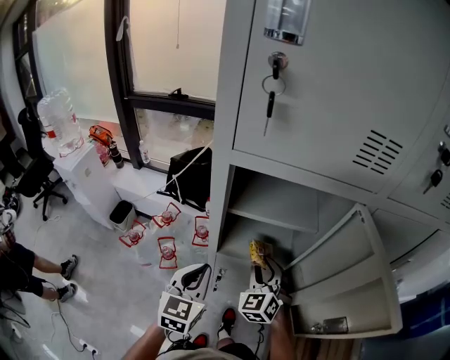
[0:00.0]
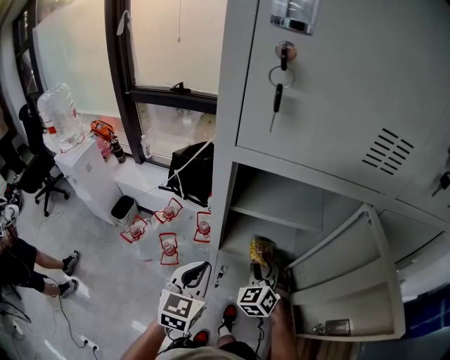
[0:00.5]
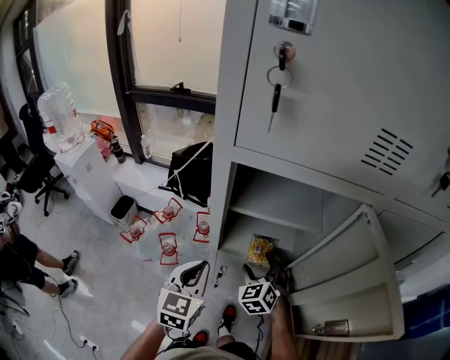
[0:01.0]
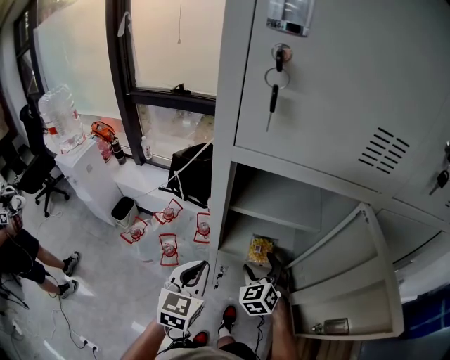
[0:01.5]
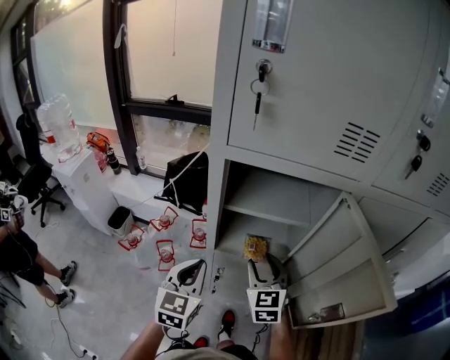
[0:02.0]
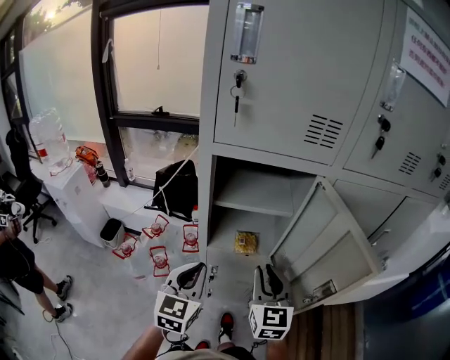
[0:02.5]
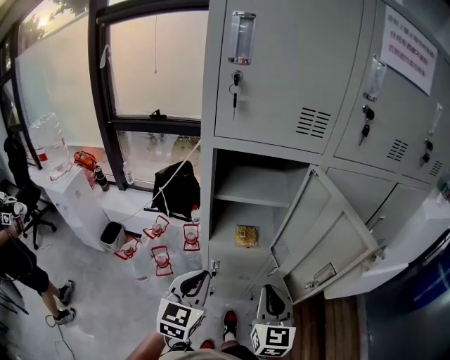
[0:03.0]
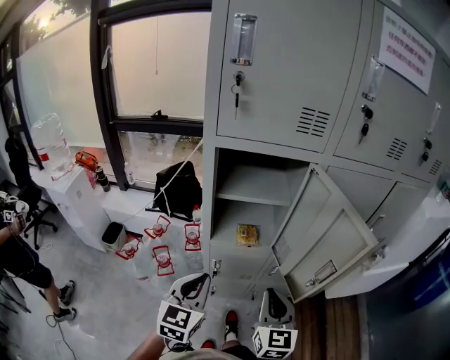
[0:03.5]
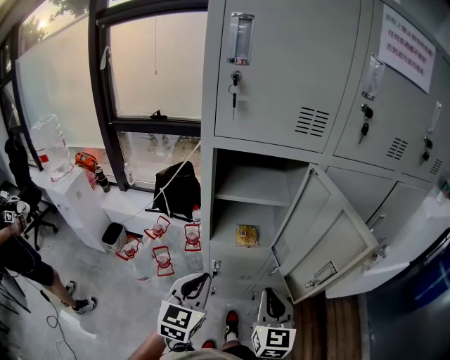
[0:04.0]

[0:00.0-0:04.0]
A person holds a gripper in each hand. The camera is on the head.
0:00.0 to 0:02.0: The right gripper moves about 5 cm, rotates some 20 degrees, and opens, then closes again.
0:02.0 to 0:04.0: The right gripper heads backward, covering some 20 cm, swivels approximately 20 degrees, and closes its fingers. The left gripper is displaced backward by about 10 cm.

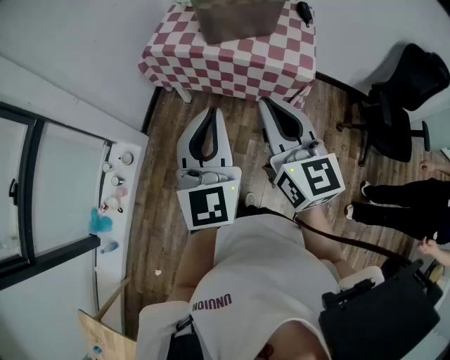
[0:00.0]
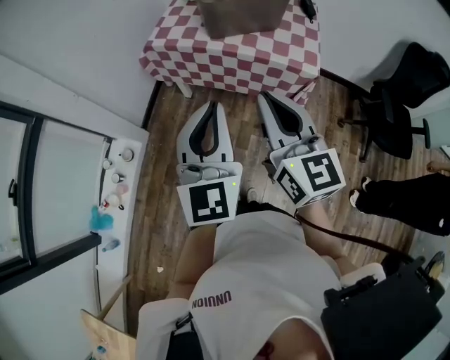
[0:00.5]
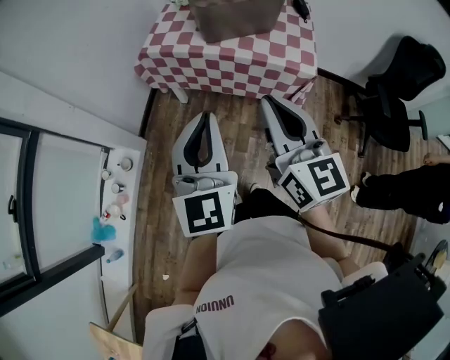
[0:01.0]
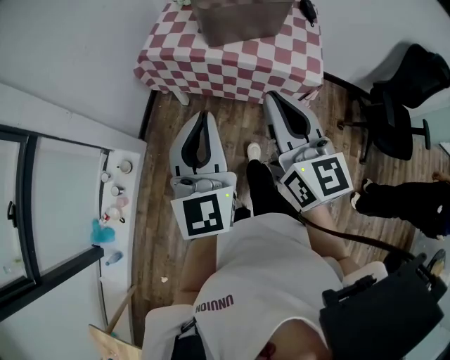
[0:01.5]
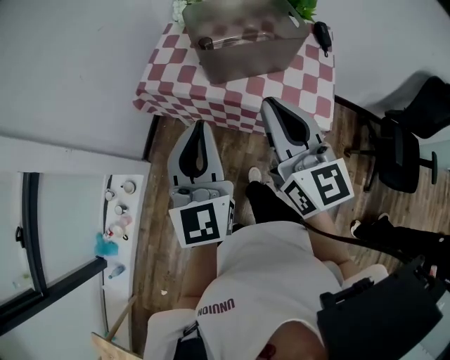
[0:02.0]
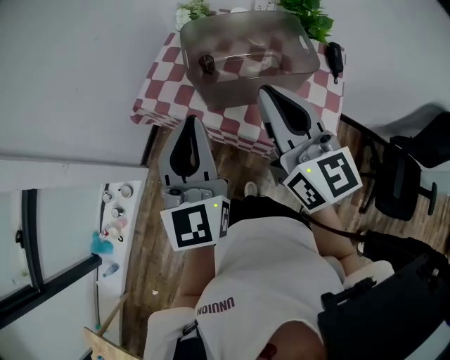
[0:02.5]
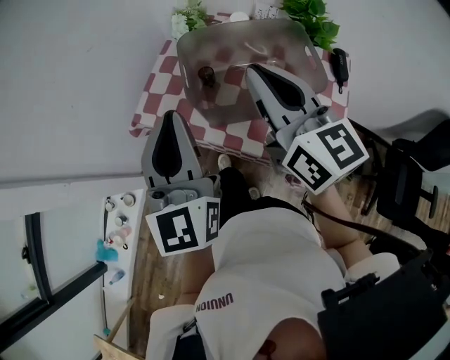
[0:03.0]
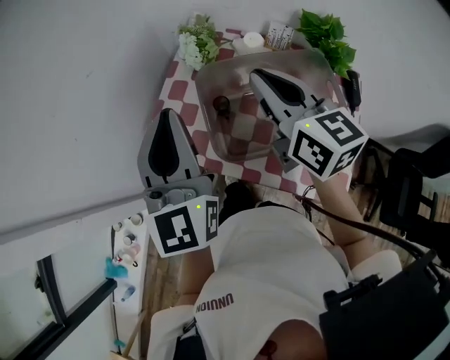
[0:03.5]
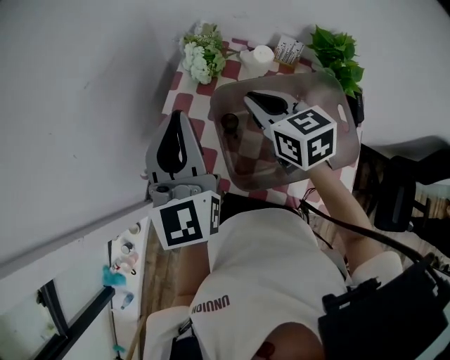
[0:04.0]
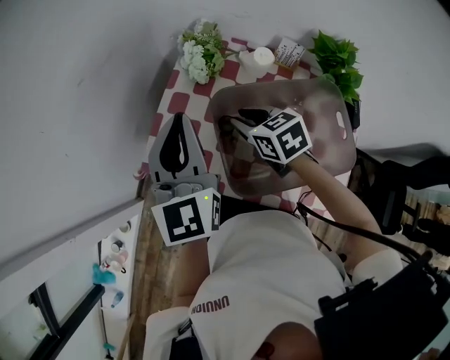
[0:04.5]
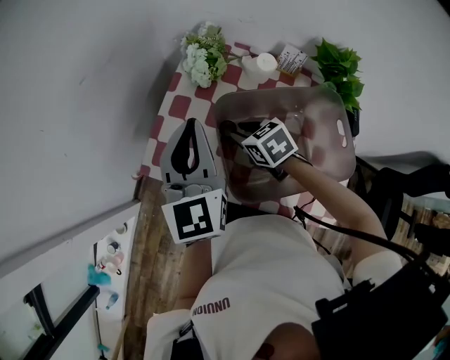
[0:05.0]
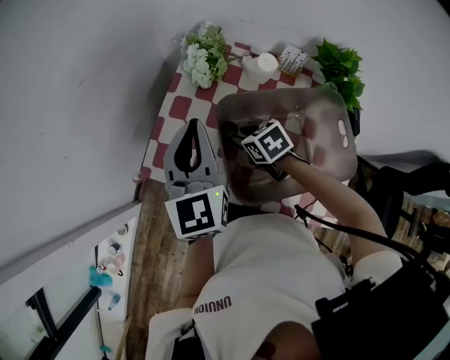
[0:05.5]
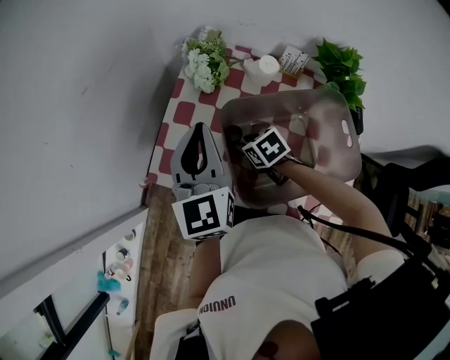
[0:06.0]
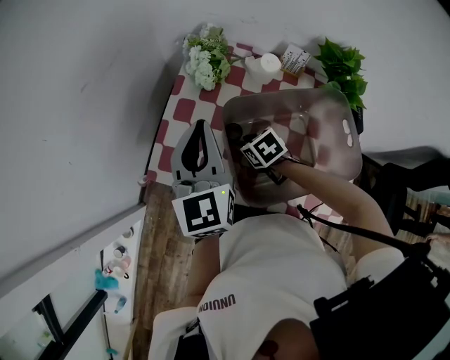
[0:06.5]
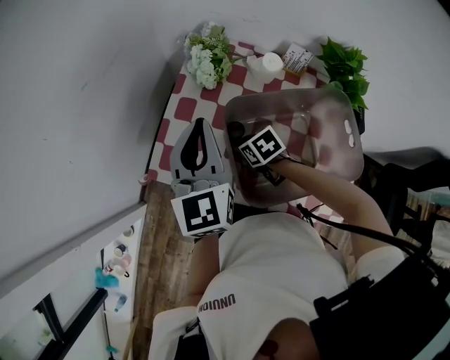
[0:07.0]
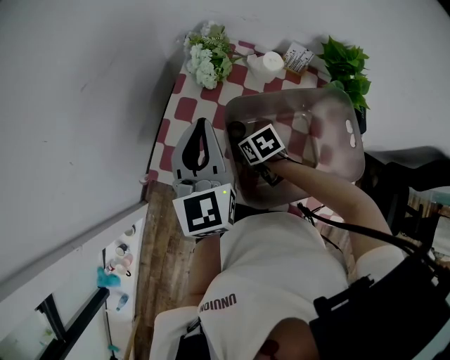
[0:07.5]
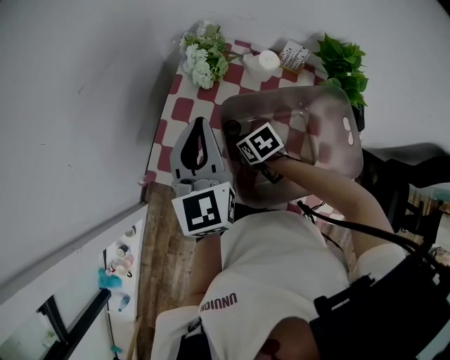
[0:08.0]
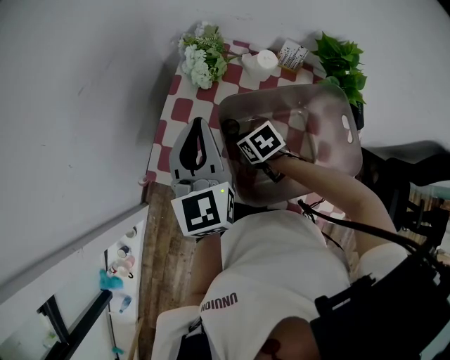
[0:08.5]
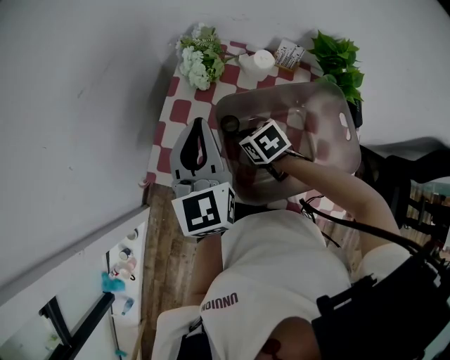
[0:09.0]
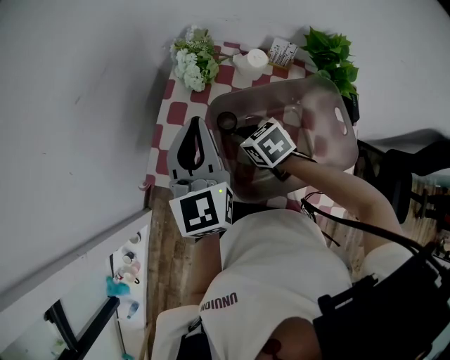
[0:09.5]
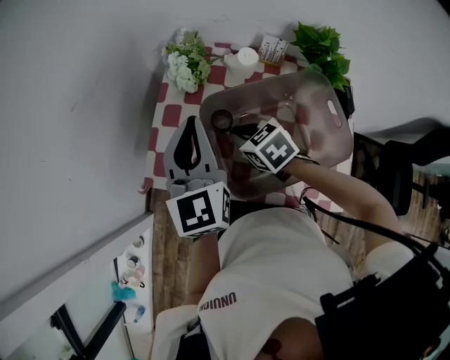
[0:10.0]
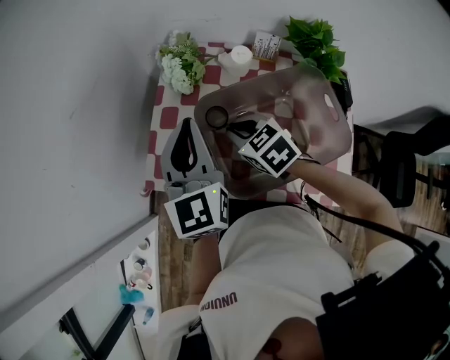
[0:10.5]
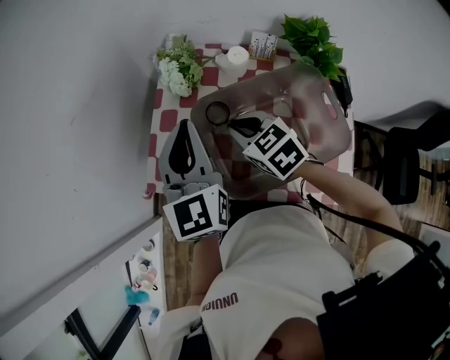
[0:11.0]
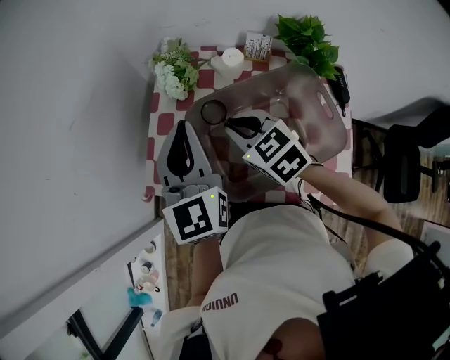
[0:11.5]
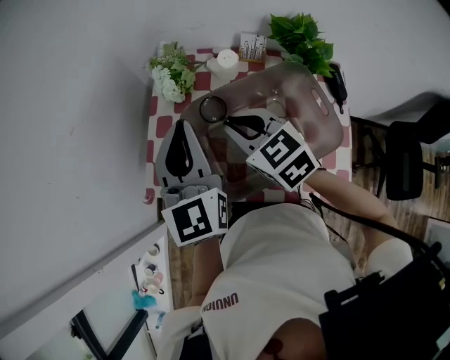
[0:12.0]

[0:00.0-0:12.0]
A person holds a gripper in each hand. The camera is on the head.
0:00.0 to 0:02.0: The grippers both shift forward by roughly 20 cm.
0:02.0 to 0:04.0: Both grippers travel together forward, roughly 40 cm. The right gripper angles its fingers downward, by some 30 degrees.
0:04.0 to 0:06.0: The left gripper goes about 5 cm downward; the right gripper shifts approximately 20 cm downward, angles its fingers downward, by roughly 30 degrees, and opens its fingers.
0:06.0 to 0:08.0: There are only small adjustments of the grippers.
0:08.0 to 0:10.0: The right gripper shifts approximately 10 cm upward.
0:10.0 to 0:12.0: The right gripper is displaced upward by approximately 10 cm, and changes its angle by approximately 20 degrees.

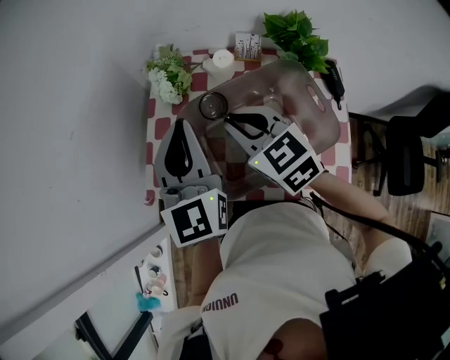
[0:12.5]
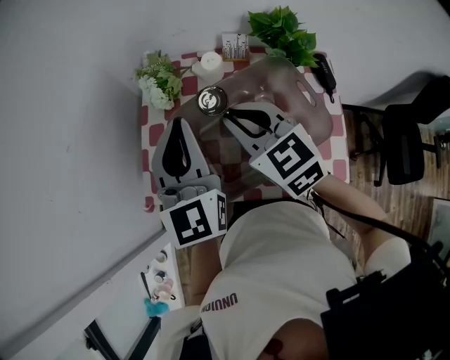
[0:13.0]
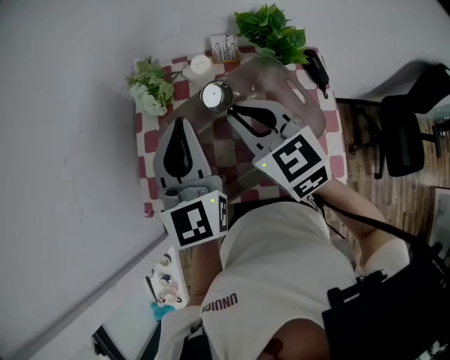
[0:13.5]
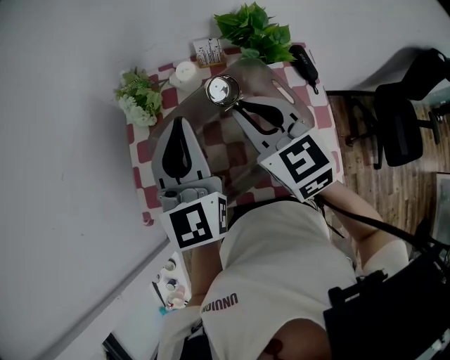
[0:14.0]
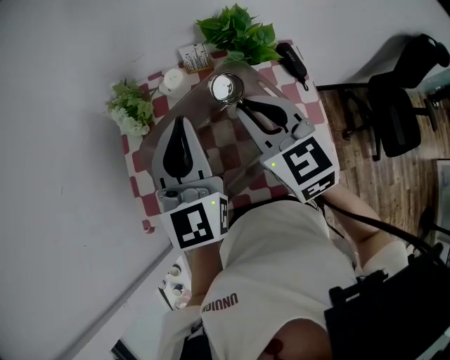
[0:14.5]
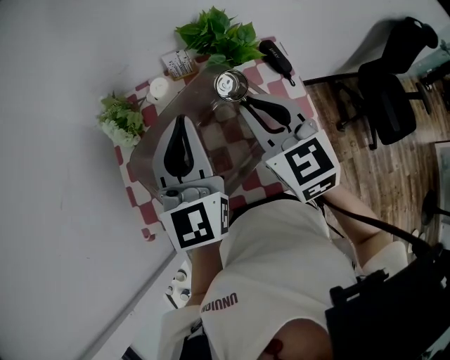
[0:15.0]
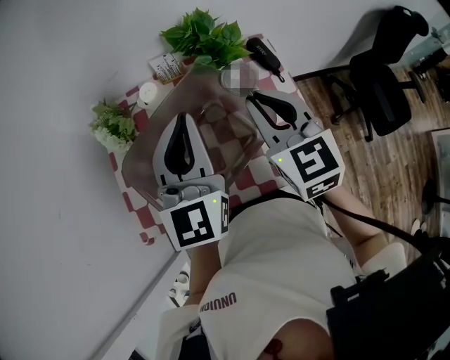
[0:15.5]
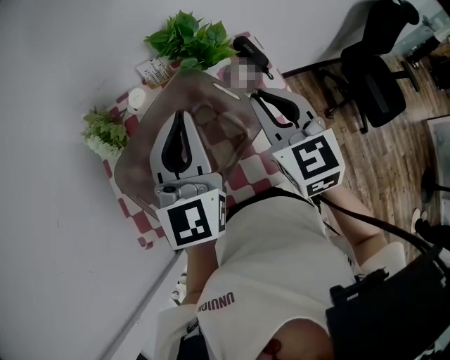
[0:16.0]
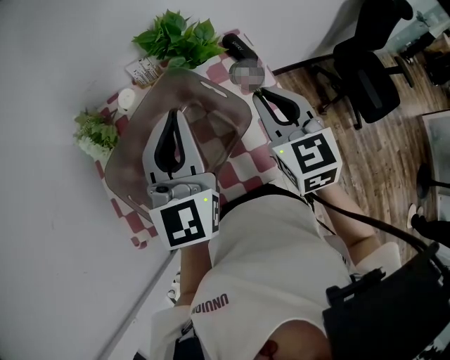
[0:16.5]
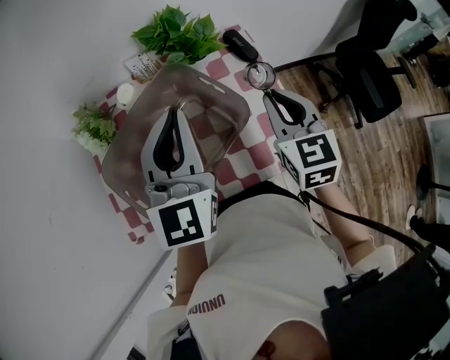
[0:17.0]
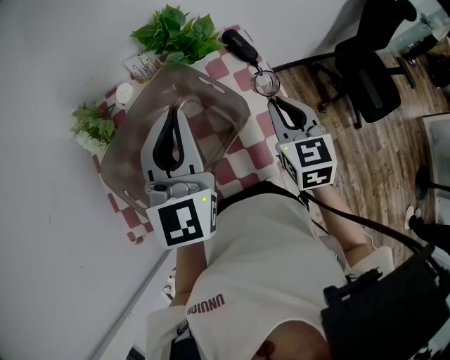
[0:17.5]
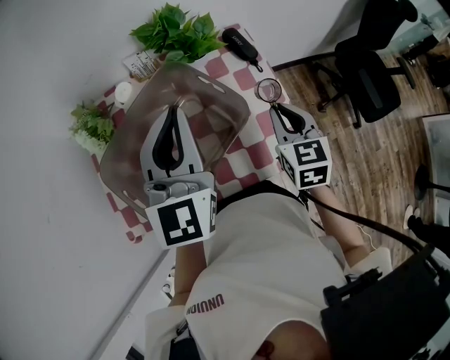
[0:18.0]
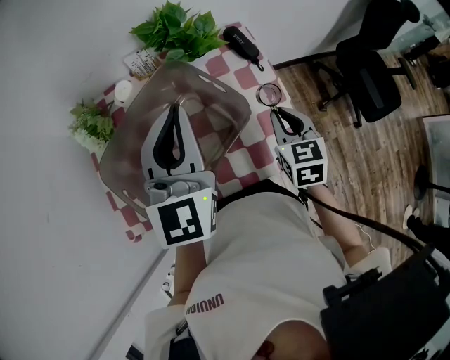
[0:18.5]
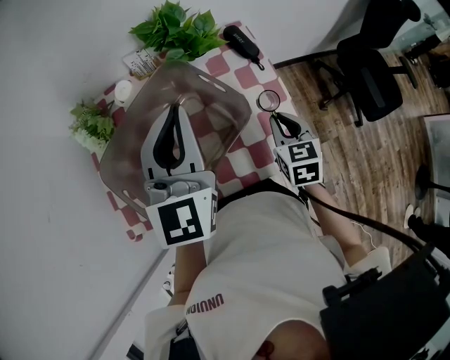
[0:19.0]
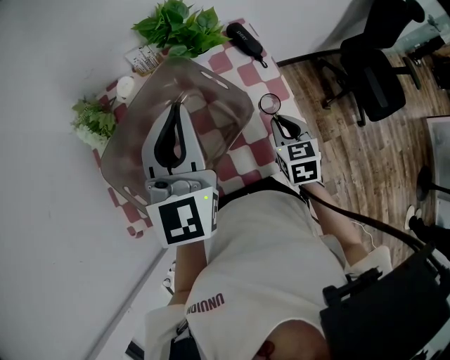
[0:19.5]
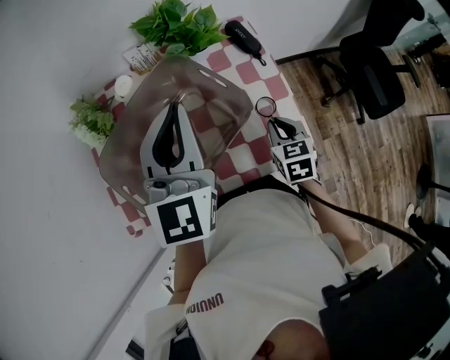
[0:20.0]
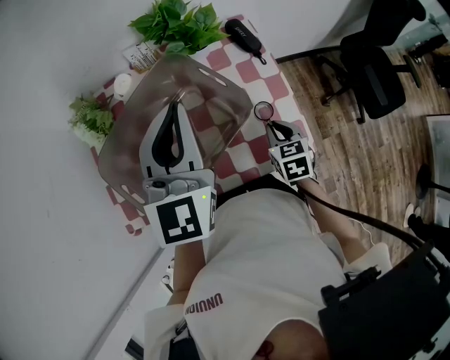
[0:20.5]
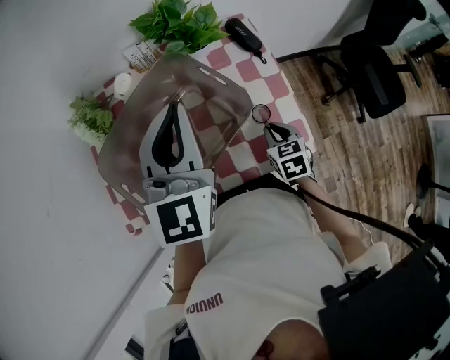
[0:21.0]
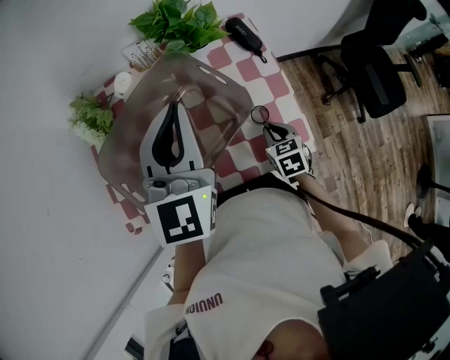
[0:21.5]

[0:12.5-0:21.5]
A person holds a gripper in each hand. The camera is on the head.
0:12.5 to 0:14.5: The grippers both shift to the right by some 15 cm. The right gripper rotates approximately 30 degrees.
0:14.5 to 0:17.0: The right gripper goes some 20 cm to the right, and rotates roughly 30 degrees; the left gripper travels to the right by about 10 cm.
0:17.0 to 0:19.5: The right gripper heads downward, covering some 15 cm.
0:19.5 to 0:21.5: The right gripper heads downward, covering about 10 cm.

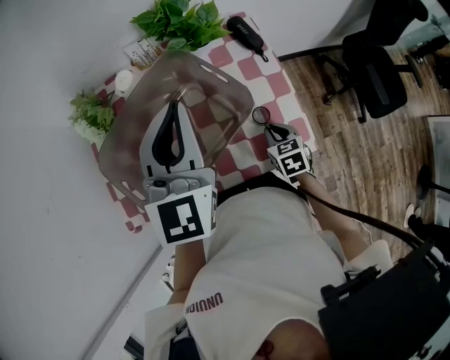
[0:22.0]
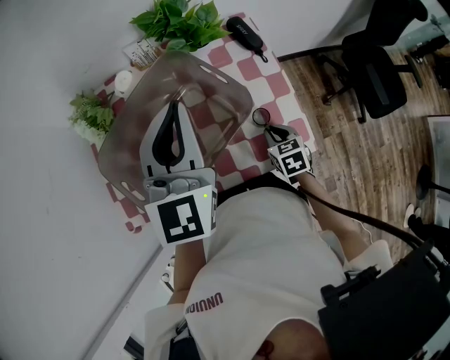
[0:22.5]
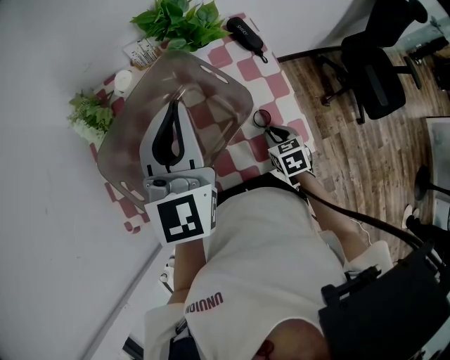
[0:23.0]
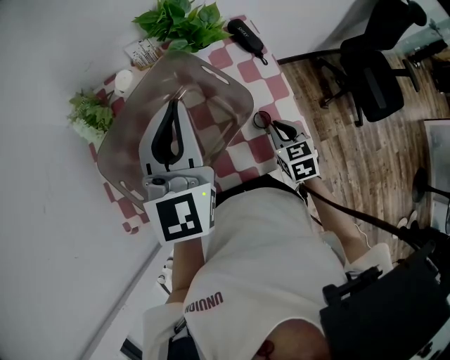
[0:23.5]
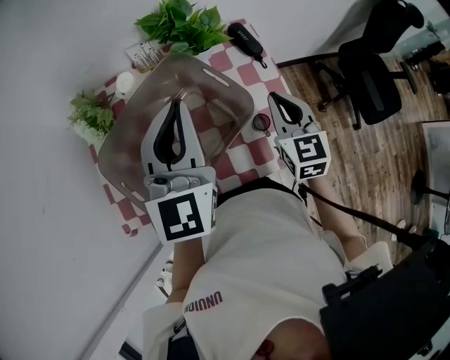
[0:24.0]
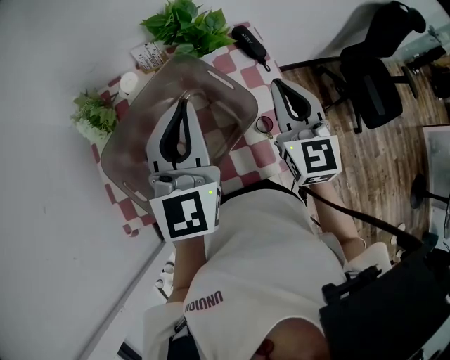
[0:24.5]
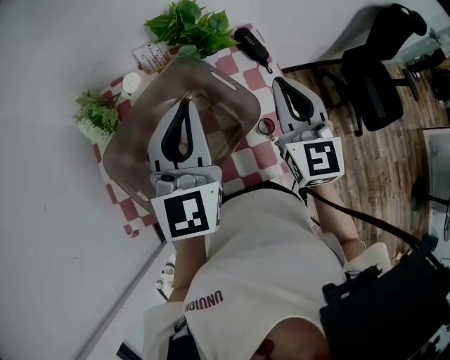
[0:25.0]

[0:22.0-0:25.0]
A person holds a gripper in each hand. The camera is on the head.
0:22.0 to 0:23.5: The grippers make only small movements.
0:23.5 to 0:25.0: The right gripper goes roughly 25 cm upward, and tilts its fingers about 40 degrees upward.
